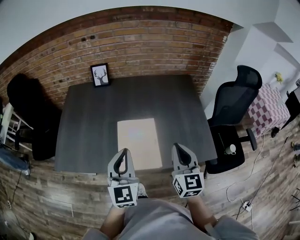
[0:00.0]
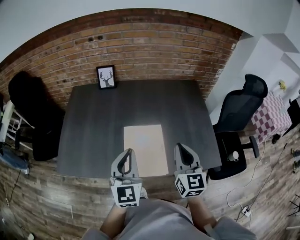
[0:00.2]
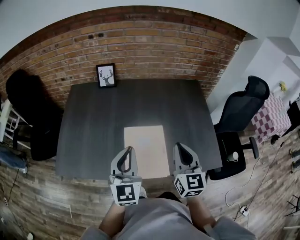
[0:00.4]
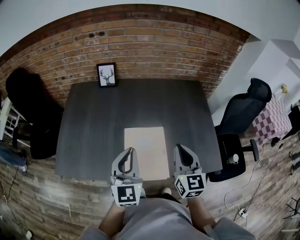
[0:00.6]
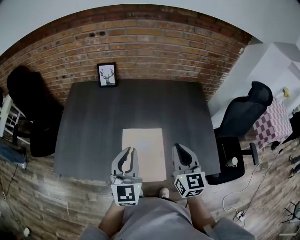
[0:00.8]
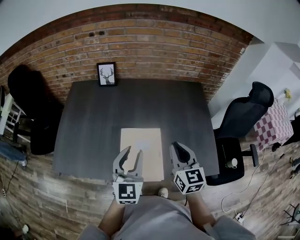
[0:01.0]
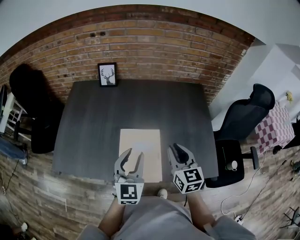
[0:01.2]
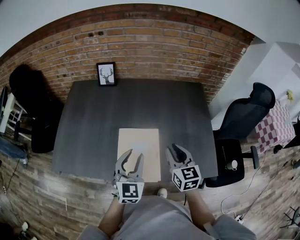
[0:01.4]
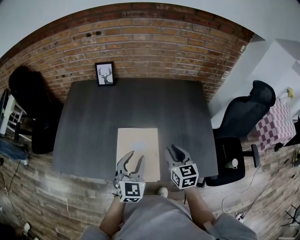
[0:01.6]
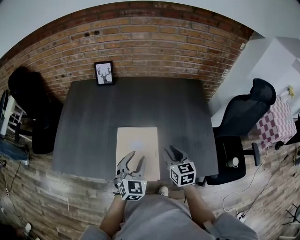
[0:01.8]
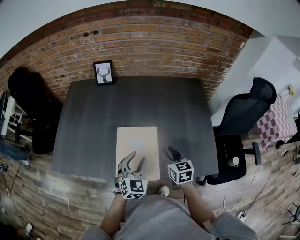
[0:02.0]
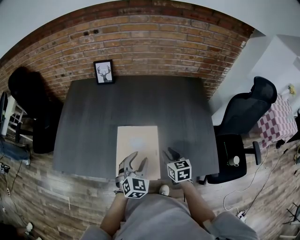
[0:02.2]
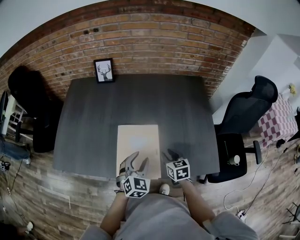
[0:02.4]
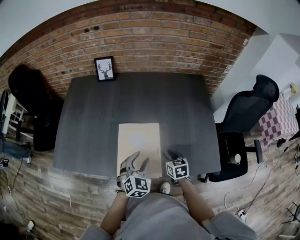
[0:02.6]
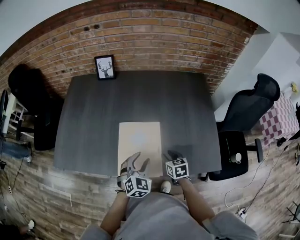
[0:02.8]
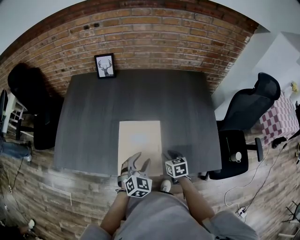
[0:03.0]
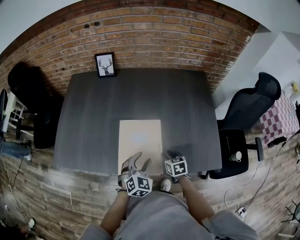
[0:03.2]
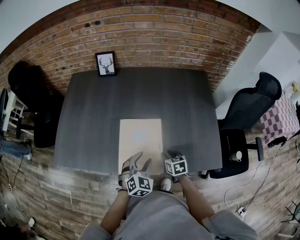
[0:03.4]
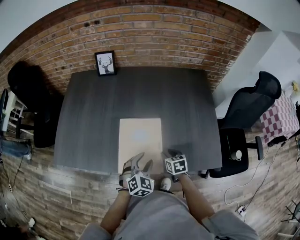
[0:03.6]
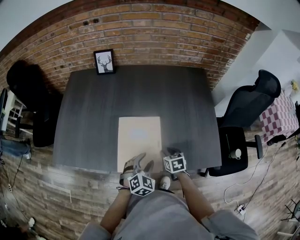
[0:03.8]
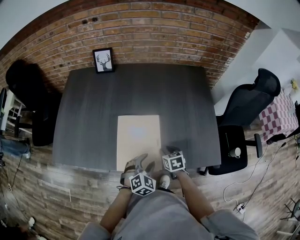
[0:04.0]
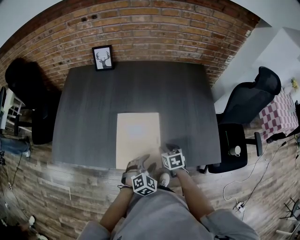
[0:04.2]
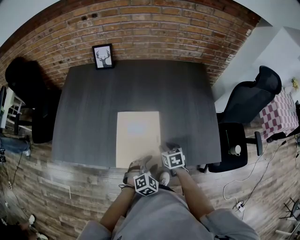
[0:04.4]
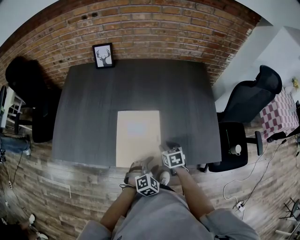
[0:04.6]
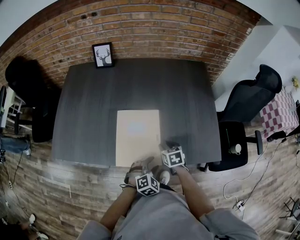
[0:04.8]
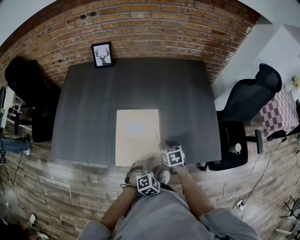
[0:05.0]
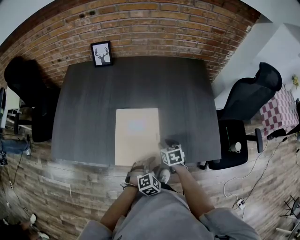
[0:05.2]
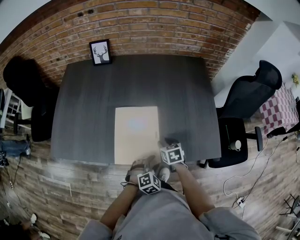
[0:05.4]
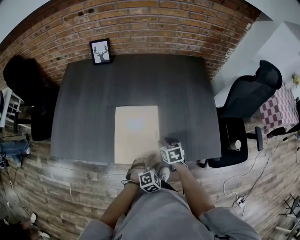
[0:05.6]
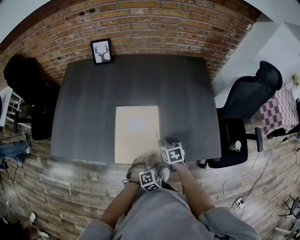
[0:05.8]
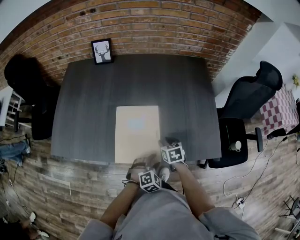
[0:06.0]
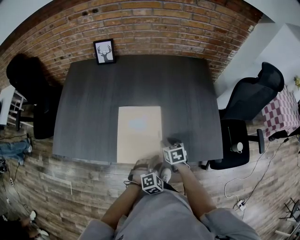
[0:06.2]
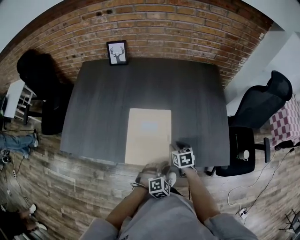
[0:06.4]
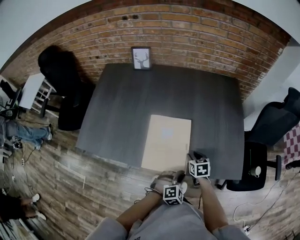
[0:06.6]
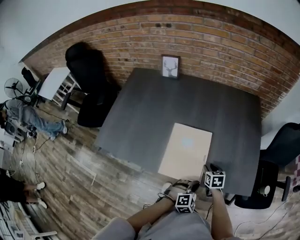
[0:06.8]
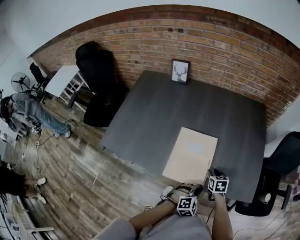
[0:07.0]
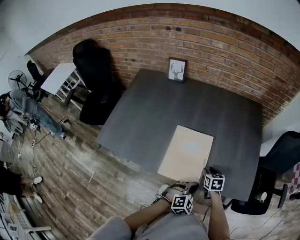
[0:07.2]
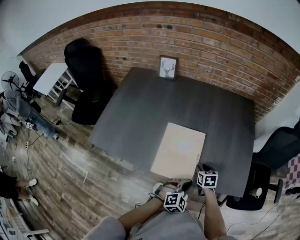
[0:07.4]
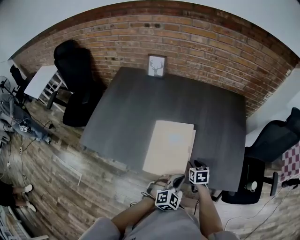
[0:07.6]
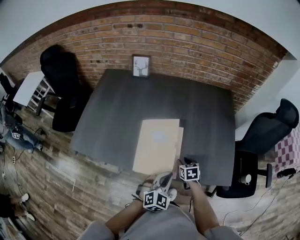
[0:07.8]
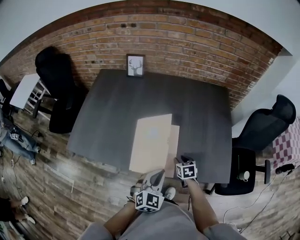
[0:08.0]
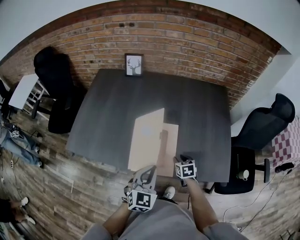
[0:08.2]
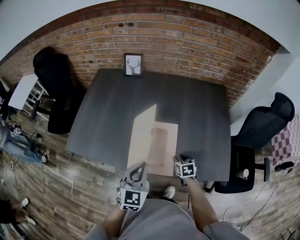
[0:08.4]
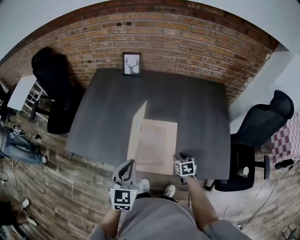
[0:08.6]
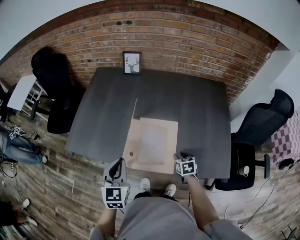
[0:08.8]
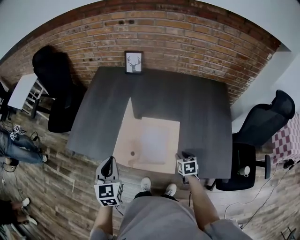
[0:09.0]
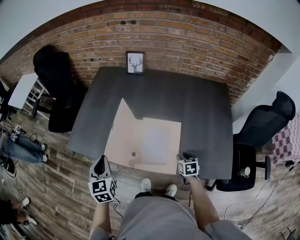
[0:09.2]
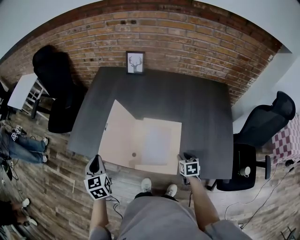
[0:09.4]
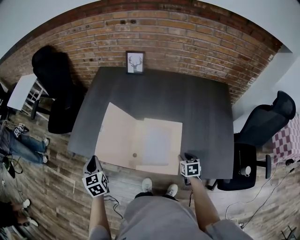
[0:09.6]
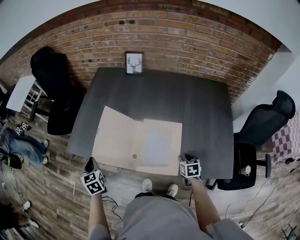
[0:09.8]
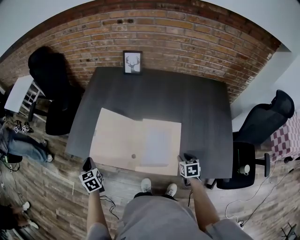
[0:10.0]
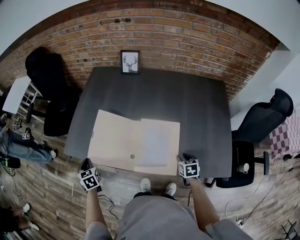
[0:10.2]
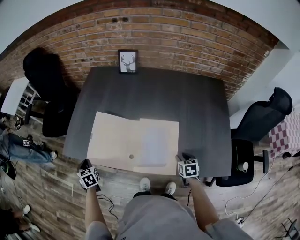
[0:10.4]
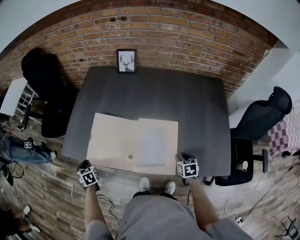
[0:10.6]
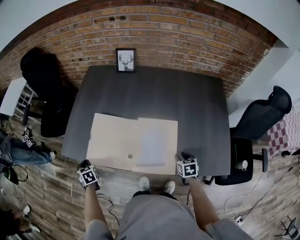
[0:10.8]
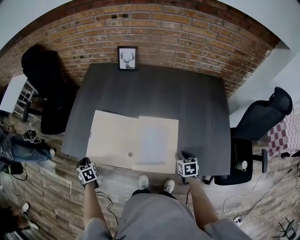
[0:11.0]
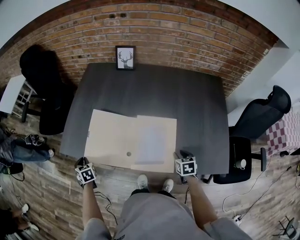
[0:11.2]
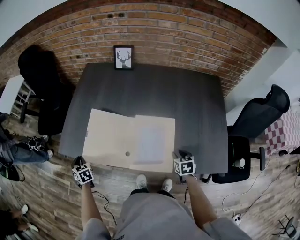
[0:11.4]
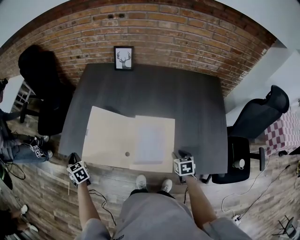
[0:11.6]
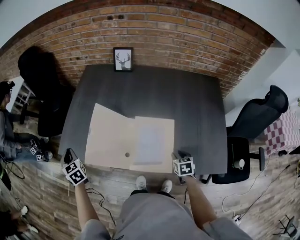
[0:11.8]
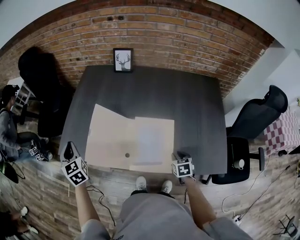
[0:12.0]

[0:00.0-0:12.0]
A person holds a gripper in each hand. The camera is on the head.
0:00.0 to 0:01.6: The left gripper heads downward, forward and to the right, covering some 15 cm, and opens up. The right gripper shifts about 15 cm downward and forward, and changes its angle by about 20 degrees.
0:01.6 to 0:03.0: The right gripper moves downward, about 20 cm, and rotates approximately 30 degrees. The left gripper travels downward by some 10 cm, and rotates roughly 20 degrees.
0:03.0 to 0:04.4: The left gripper goes roughly 10 cm downward, backward and to the right, and turns by about 20 degrees.
0:04.4 to 0:06.0: There are only small adjustments of the grippers.
0:06.0 to 0:07.6: The left gripper travels upward by approximately 10 cm, and closes.
0:07.6 to 0:09.0: The left gripper is displaced to the left by roughly 25 cm, and changes its angle by some 50 degrees.
0:09.0 to 0:10.4: The left gripper shifts approximately 25 cm to the left, downward and forward, and turns by some 30 degrees.
0:10.4 to 0:12.0: The left gripper travels upward by about 15 cm, and rotates some 20 degrees.

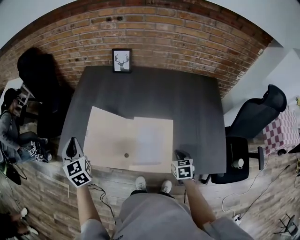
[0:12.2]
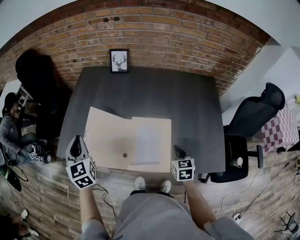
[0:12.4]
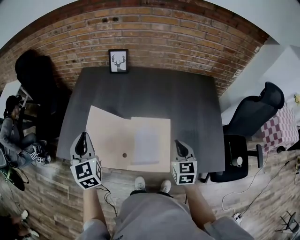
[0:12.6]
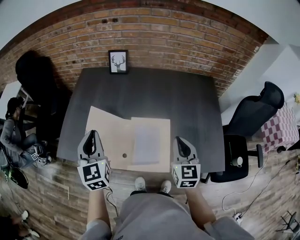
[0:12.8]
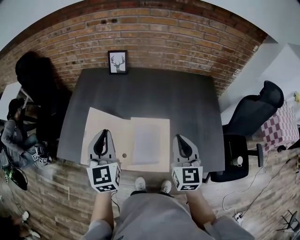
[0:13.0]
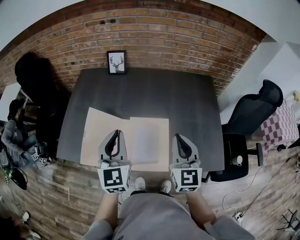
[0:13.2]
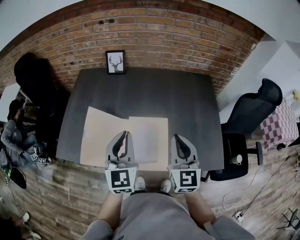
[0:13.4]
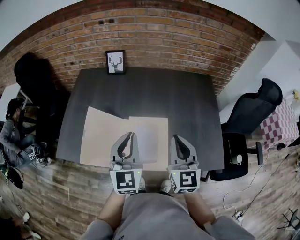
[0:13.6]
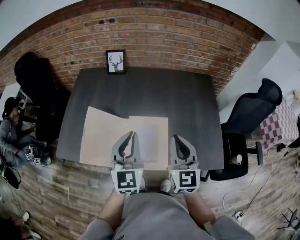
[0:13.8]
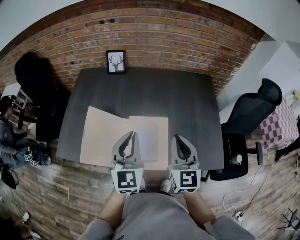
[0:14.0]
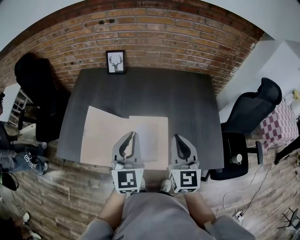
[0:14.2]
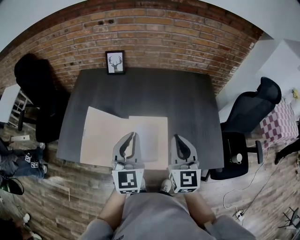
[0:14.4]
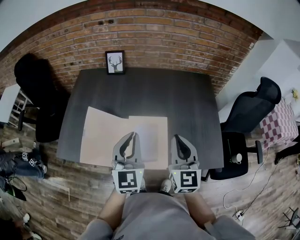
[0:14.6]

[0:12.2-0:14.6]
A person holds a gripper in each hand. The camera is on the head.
0:12.2 to 0:13.4: The right gripper moves upward, approximately 25 cm, and points its fingers about 40 degrees further upward. Meanwhile the left gripper travels to the right by some 25 cm, and changes its angle by roughly 30 degrees.
0:13.4 to 0:14.6: The grippers move only a little.

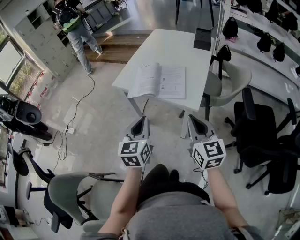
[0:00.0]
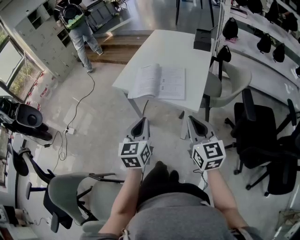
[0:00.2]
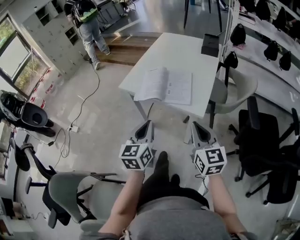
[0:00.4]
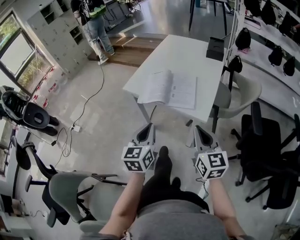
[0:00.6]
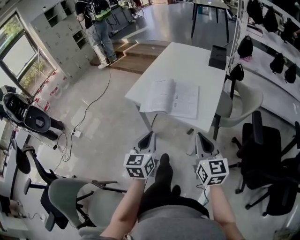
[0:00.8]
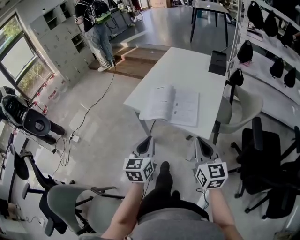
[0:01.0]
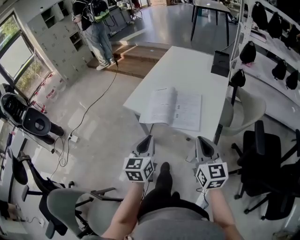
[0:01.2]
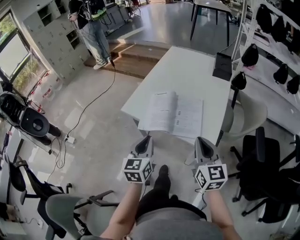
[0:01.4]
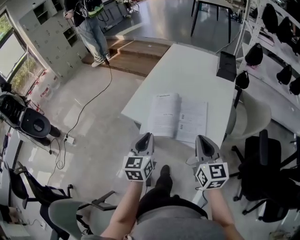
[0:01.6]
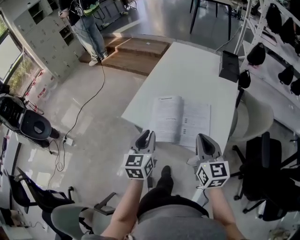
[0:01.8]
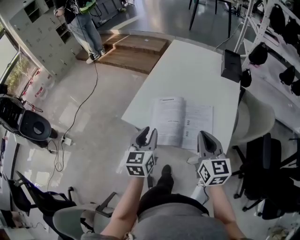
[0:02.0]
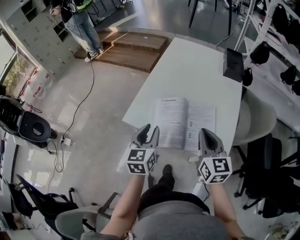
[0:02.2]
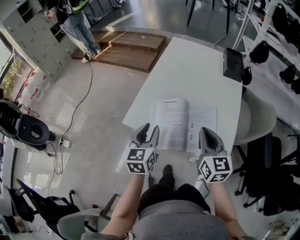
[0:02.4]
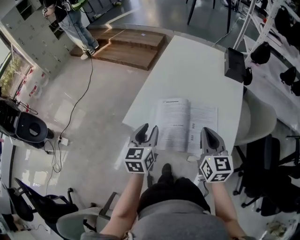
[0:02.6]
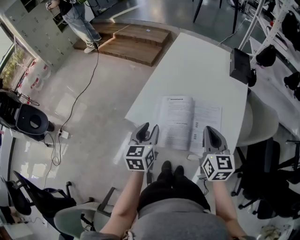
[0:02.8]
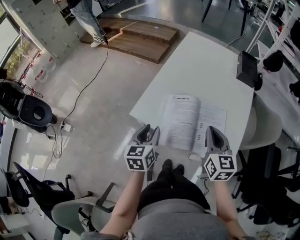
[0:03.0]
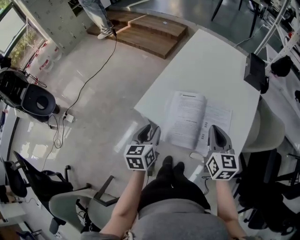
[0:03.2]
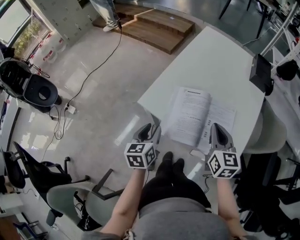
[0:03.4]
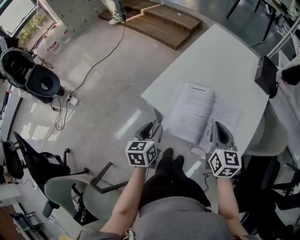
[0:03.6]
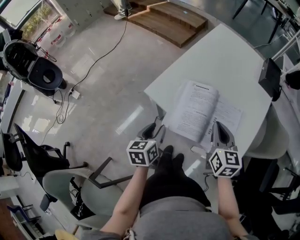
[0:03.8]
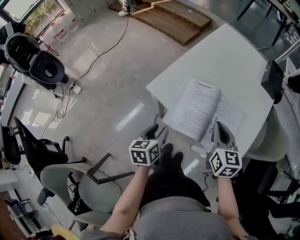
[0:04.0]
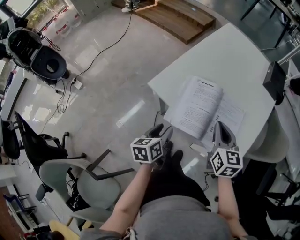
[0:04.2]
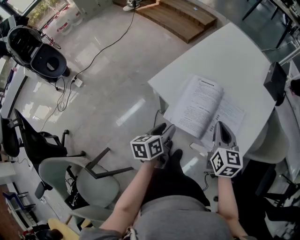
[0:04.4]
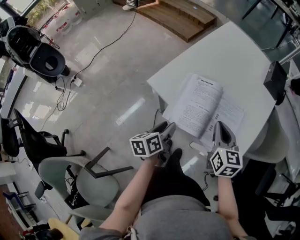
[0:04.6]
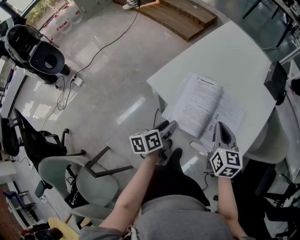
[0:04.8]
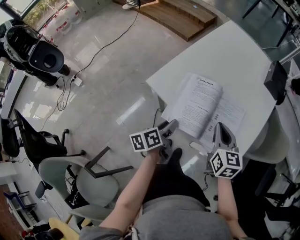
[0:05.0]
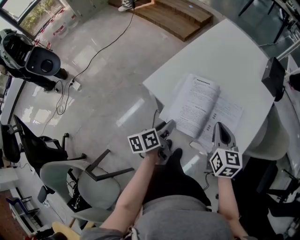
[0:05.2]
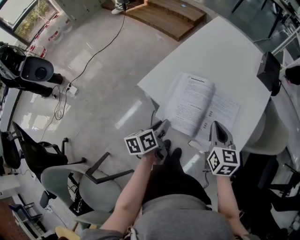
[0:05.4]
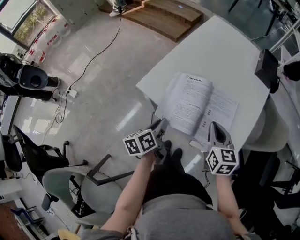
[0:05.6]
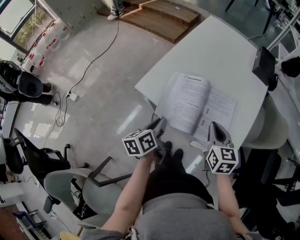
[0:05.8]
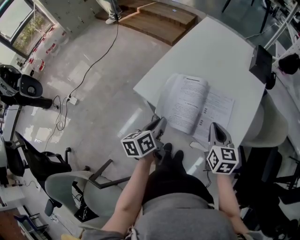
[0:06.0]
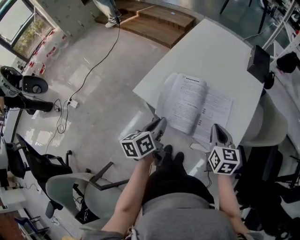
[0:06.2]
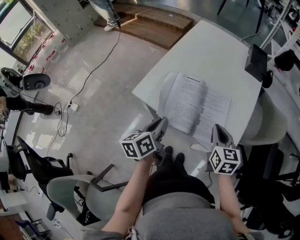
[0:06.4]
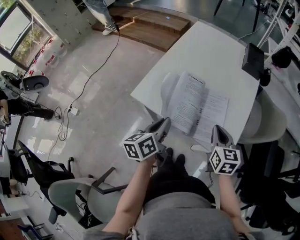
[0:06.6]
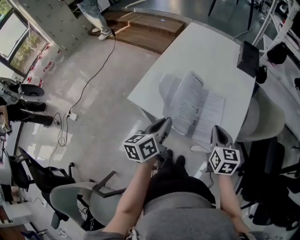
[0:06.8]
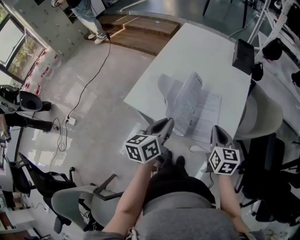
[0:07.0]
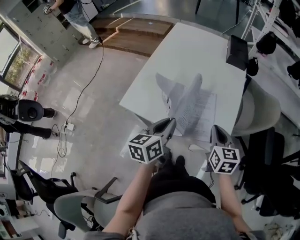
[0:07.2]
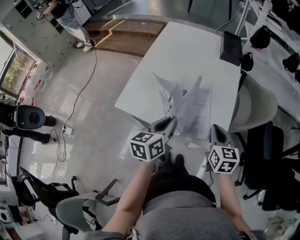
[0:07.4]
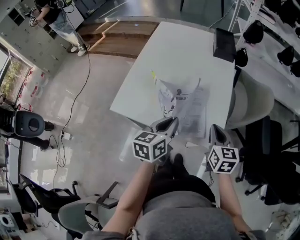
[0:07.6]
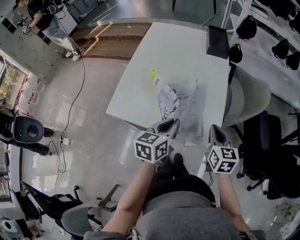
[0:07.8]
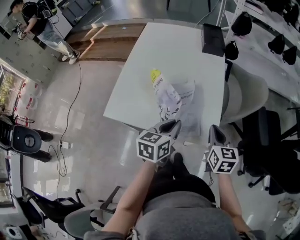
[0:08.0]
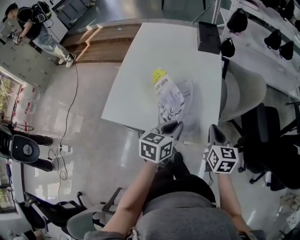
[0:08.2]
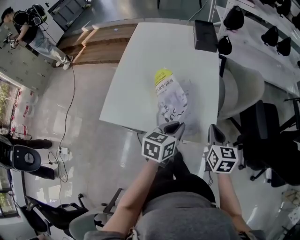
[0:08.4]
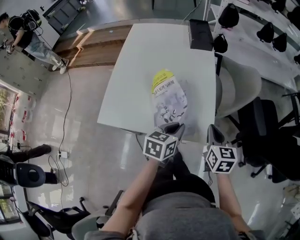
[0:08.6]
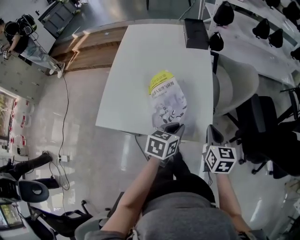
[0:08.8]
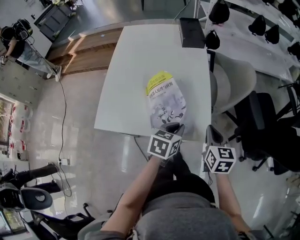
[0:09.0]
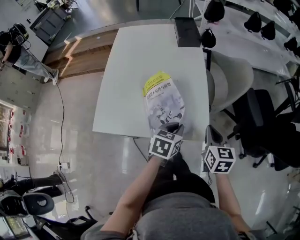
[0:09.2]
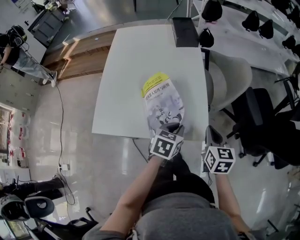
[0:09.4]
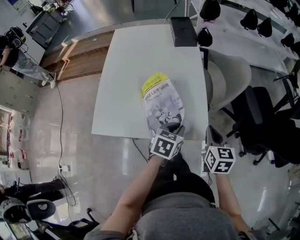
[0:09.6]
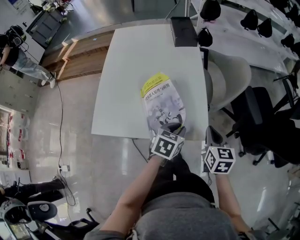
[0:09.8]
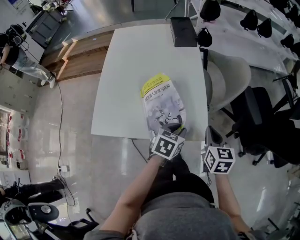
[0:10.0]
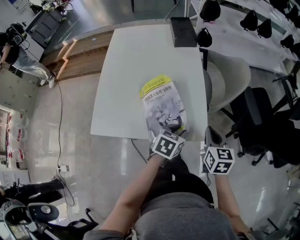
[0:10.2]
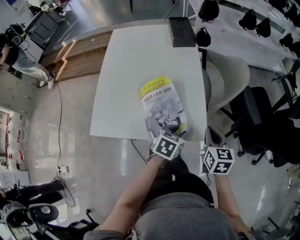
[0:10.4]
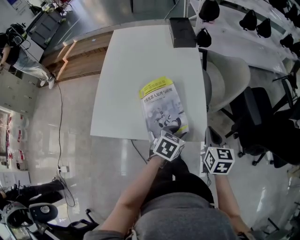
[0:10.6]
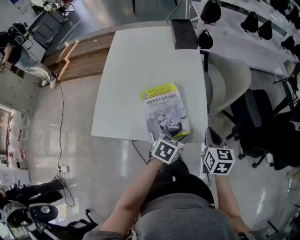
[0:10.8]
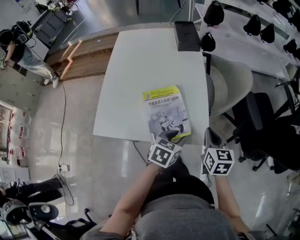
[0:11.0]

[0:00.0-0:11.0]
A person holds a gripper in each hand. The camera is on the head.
0:00.0 to 0:01.6: Both grippers travel together forward, about 15 cm.
0:01.6 to 0:03.2: The left gripper travels to the left, forward and downward by approximately 15 cm, and opens up. Meanwhile the right gripper travels forward and to the left by roughly 15 cm.
0:03.2 to 0:04.8: The left gripper is displaced downward by approximately 5 cm, and turns by roughly 40 degrees.
0:04.8 to 0:06.2: The right gripper moves some 5 cm; the left gripper is displaced upward by approximately 5 cm, and closes up.
0:06.2 to 0:07.8: Both grippers move to the right, approximately 15 cm. The left gripper swivels approximately 40 degrees.
0:07.8 to 0:09.4: The left gripper heads to the right and downward, covering approximately 10 cm, and changes its angle by some 30 degrees, while the right gripper shifts about 5 cm to the right.
0:09.4 to 0:11.0: The left gripper opens.
